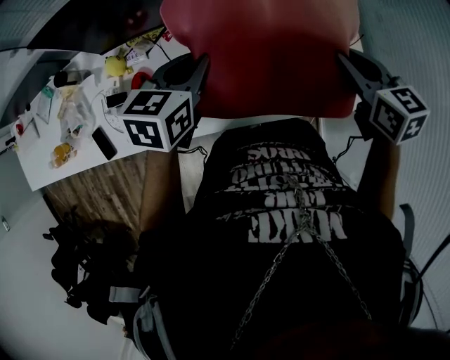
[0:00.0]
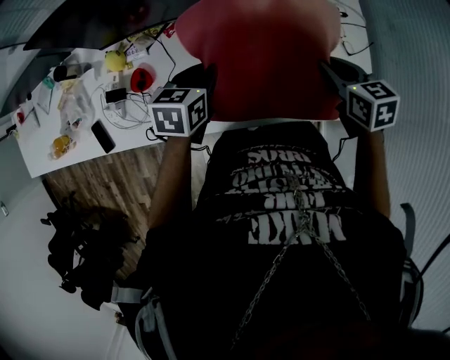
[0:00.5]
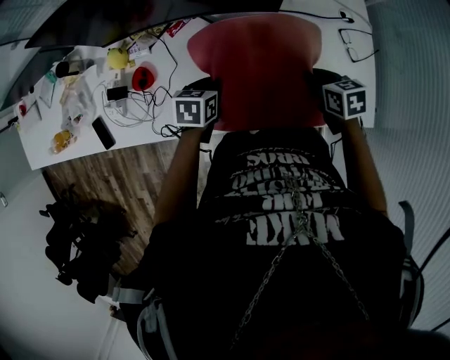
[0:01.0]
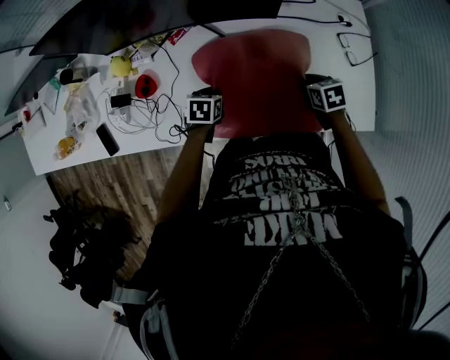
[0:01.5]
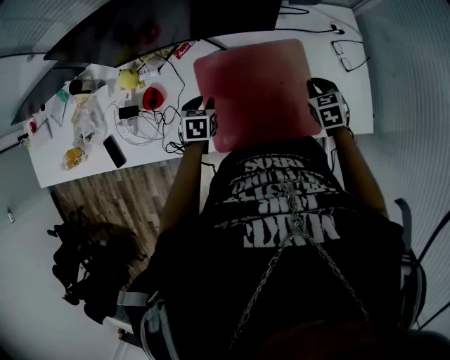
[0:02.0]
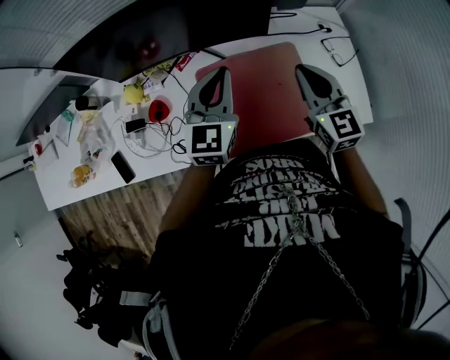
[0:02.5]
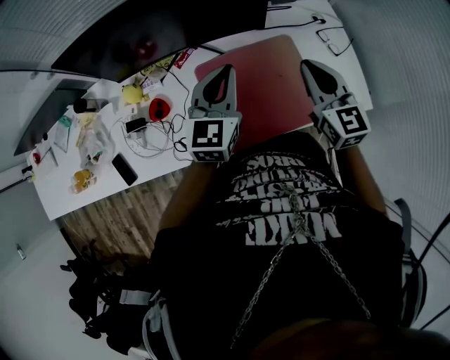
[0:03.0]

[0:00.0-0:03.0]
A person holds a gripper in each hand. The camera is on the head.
0.0 to 1.5 s: The grippers both shift downward by approximately 30 cm. The left gripper swivels some 30 degrees; the right gripper turns by roughly 30 degrees.
1.5 to 3.0 s: Both grippers move upward, roughly 30 cm. The right gripper tilts its fingers roughly 50 degrees upward; the left gripper angles its fingers upward, by some 50 degrees.

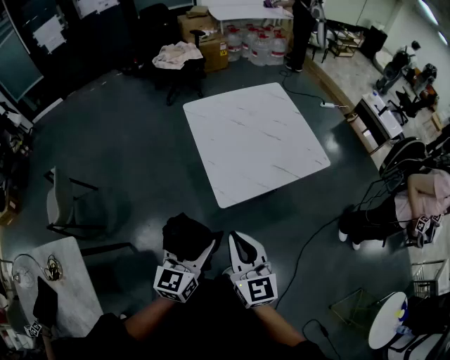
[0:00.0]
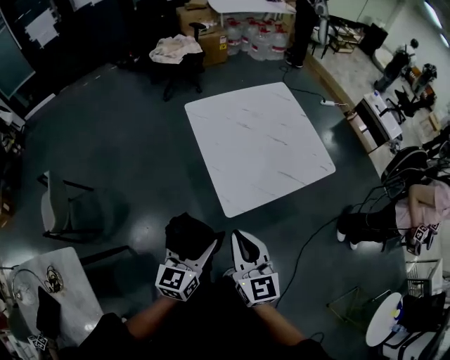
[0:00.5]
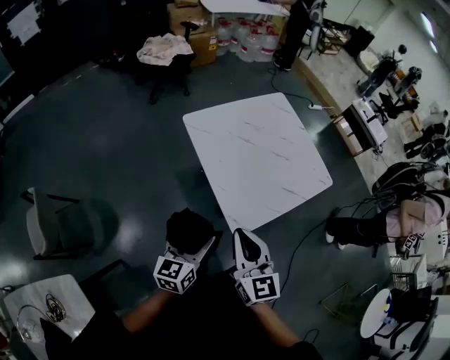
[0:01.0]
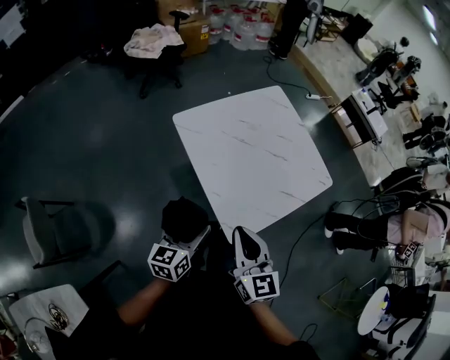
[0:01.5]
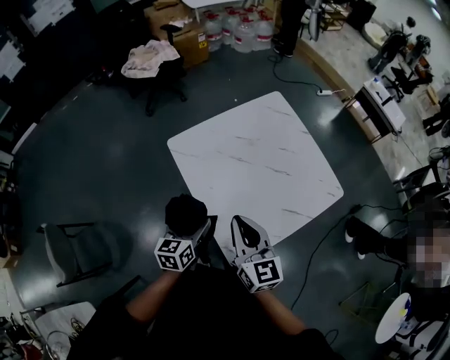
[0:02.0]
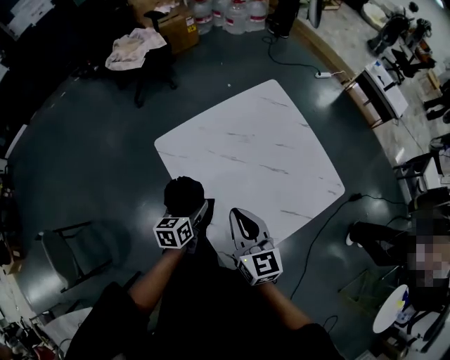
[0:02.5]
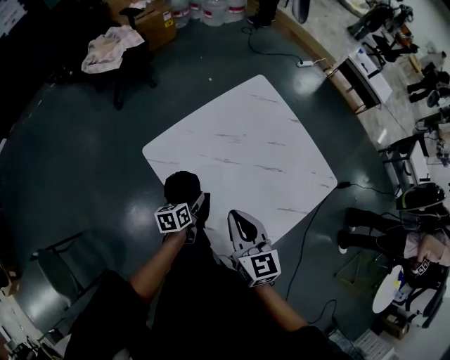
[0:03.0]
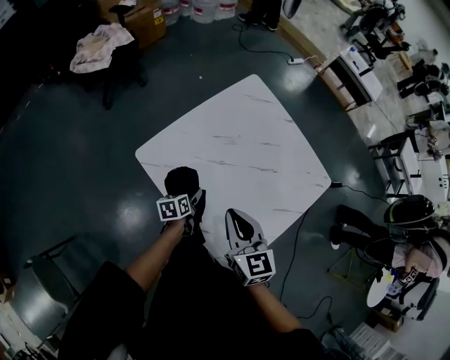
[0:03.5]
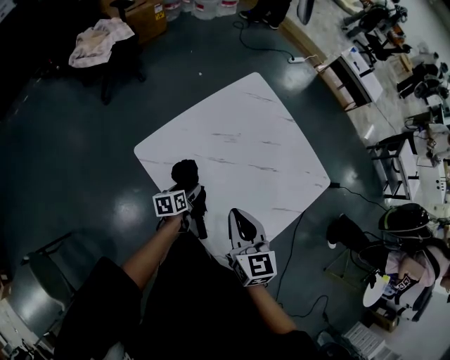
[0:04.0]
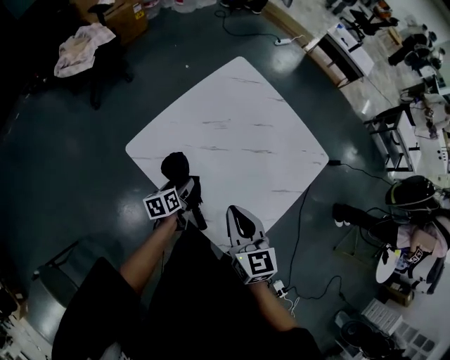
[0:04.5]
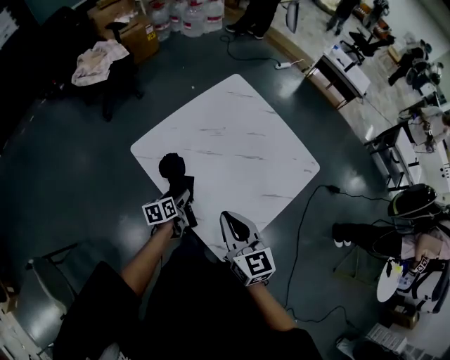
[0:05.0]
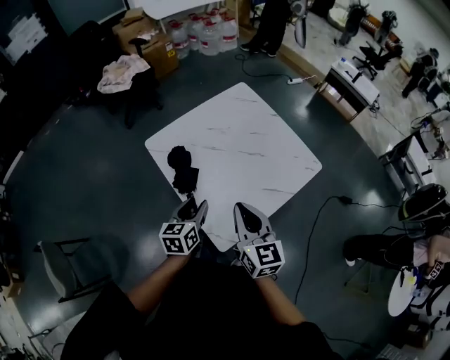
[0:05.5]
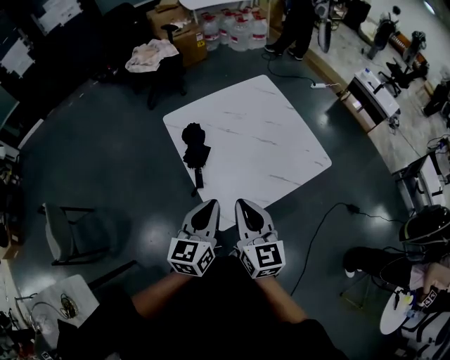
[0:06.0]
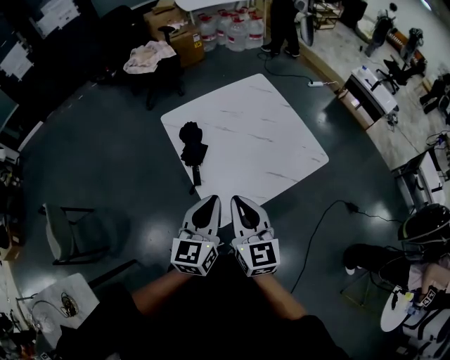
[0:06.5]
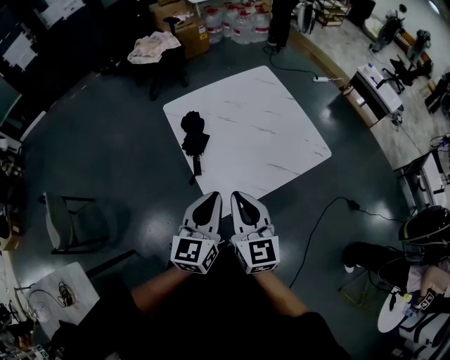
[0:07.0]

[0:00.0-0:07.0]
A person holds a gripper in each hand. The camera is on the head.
0.0 to 2.0 s: The two grippers go some 40 cm forward. The left gripper turns by roughly 20 degrees.
2.0 to 3.5 s: The left gripper shifts roughly 30 cm downward and forward, and changes its angle by about 30 degrees. Meanwhile the right gripper travels forward and downward by roughly 15 cm.
3.5 to 5.0 s: The left gripper shifts about 5 cm backward; the right gripper goes about 10 cm backward and to the right.
5.0 to 7.0 s: The right gripper is displaced backward and to the right by roughly 20 cm; the left gripper shifts roughly 40 cm upward, backward and to the right, tilts its fingers approximately 40 degrees upward, and closes up.

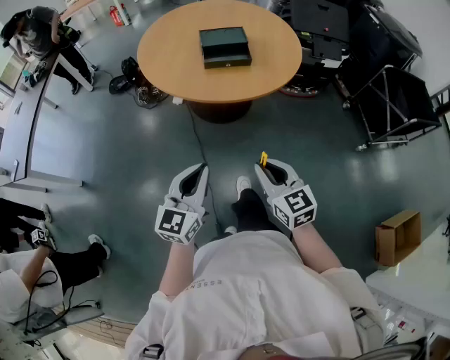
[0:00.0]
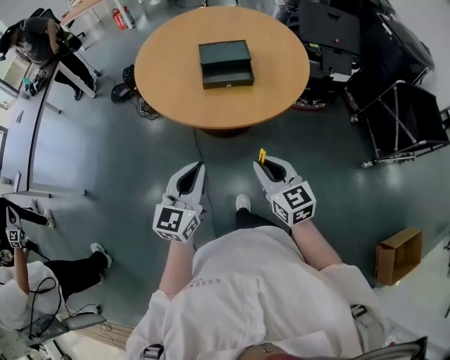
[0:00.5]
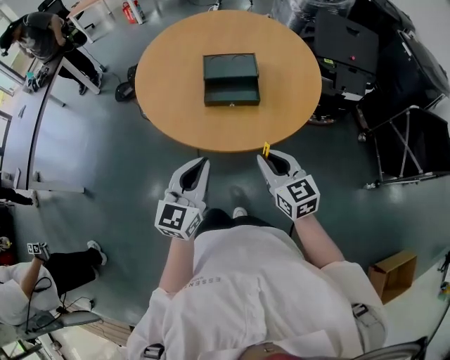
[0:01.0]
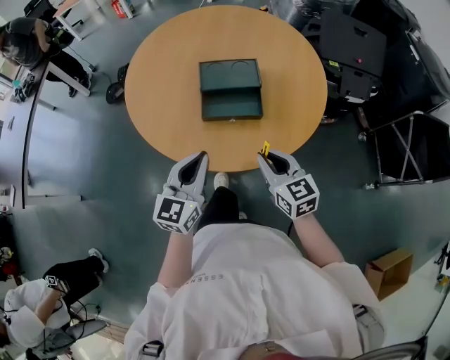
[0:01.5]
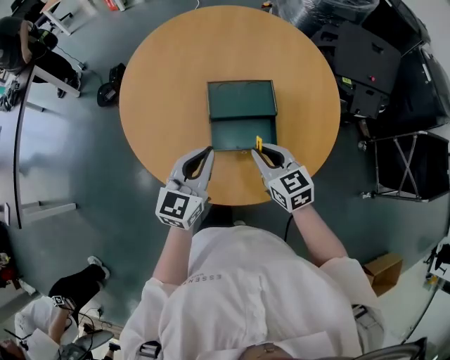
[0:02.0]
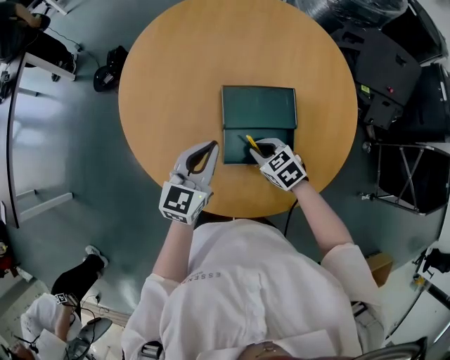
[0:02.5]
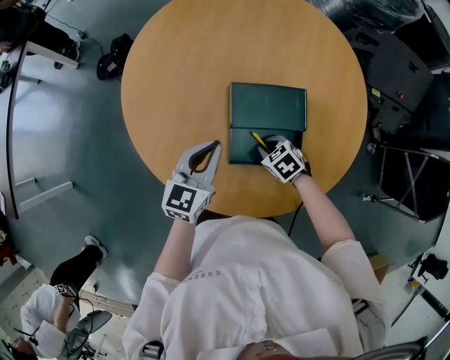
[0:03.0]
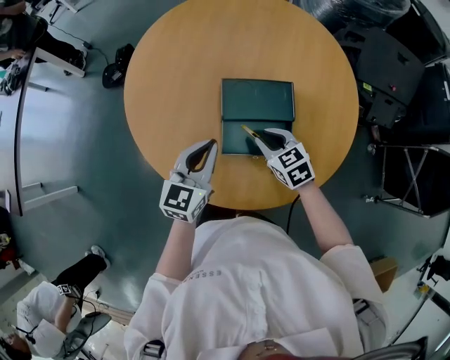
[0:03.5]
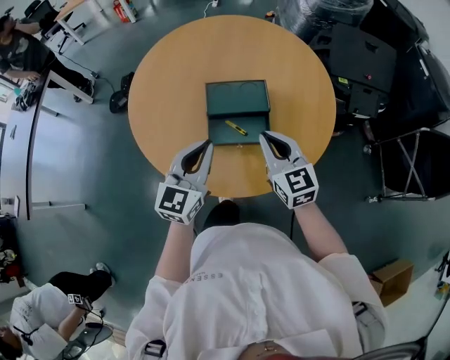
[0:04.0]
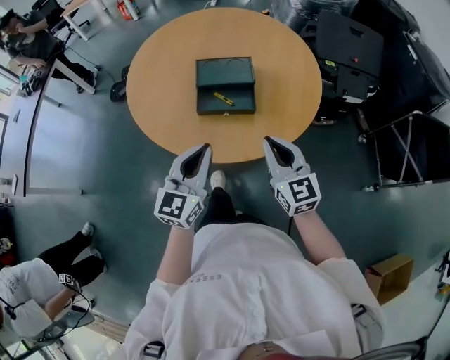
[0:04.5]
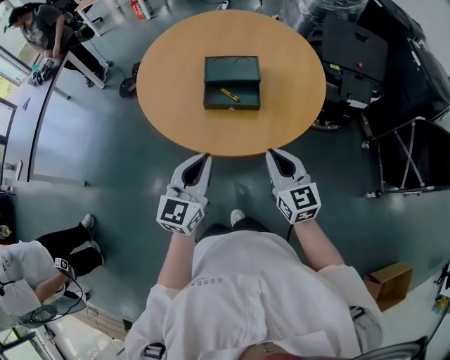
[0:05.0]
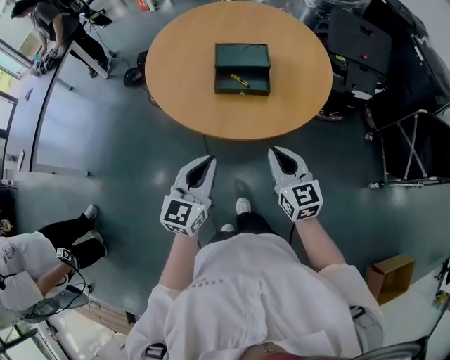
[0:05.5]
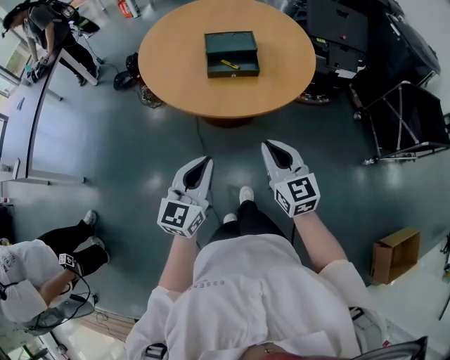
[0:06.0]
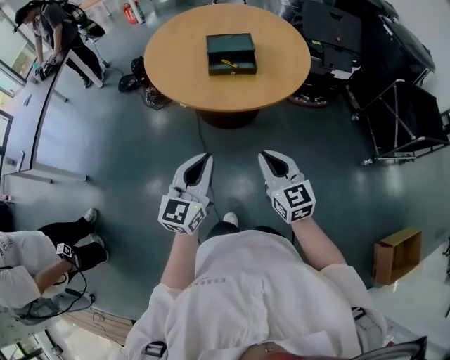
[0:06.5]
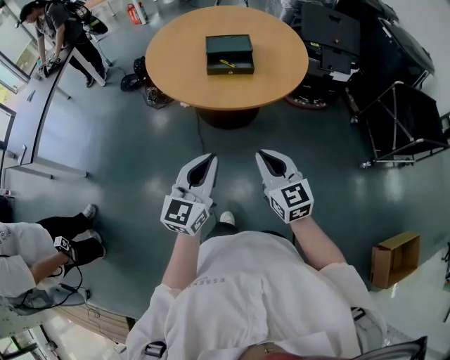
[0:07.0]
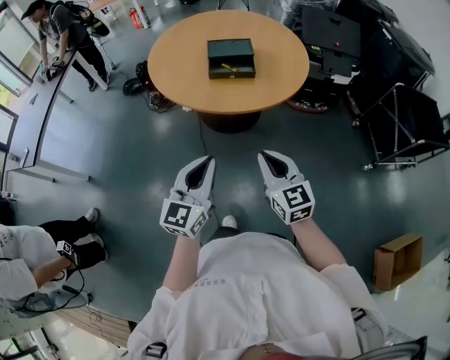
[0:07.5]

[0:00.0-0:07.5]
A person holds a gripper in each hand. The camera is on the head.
0.0 to 2.0 s: Both grippers are carried forward, roughly 50 cm.
2.0 to 4.0 s: The right gripper moves roughly 20 cm downward and comes back.
4.0 to 5.5 s: The grippers both shift backward by about 25 cm.
5.5 to 7.5 s: The two grippers go roughly 20 cm backward.

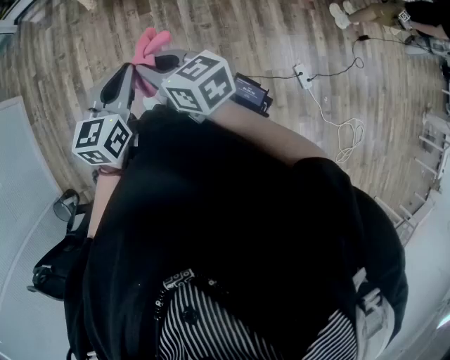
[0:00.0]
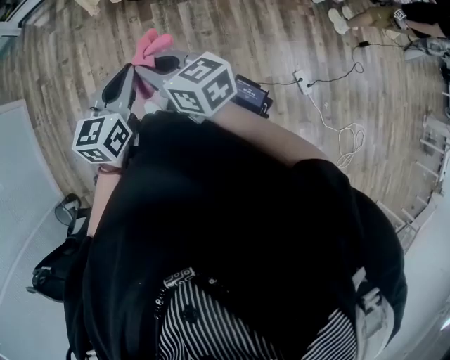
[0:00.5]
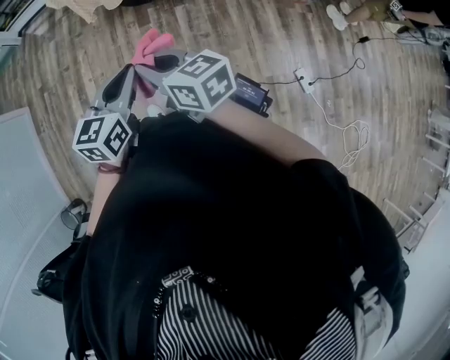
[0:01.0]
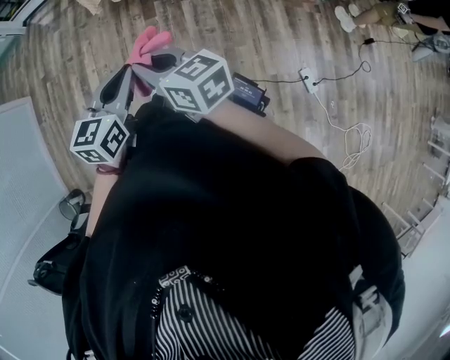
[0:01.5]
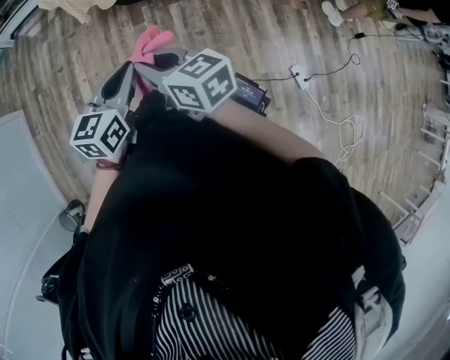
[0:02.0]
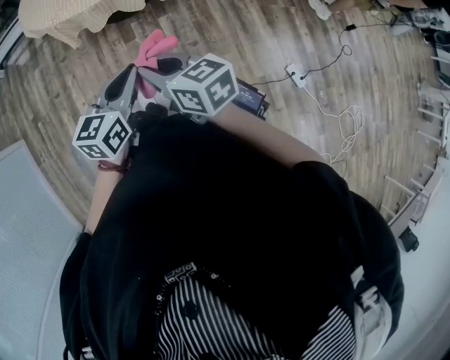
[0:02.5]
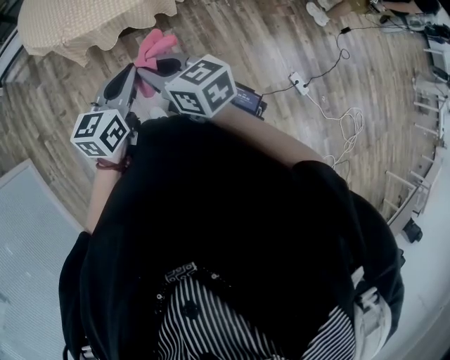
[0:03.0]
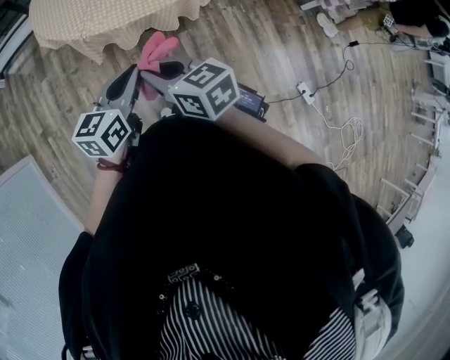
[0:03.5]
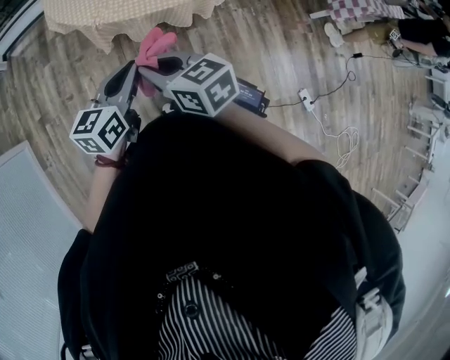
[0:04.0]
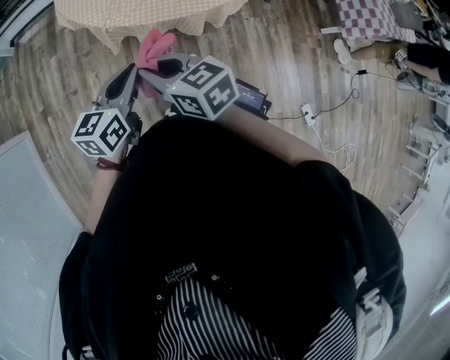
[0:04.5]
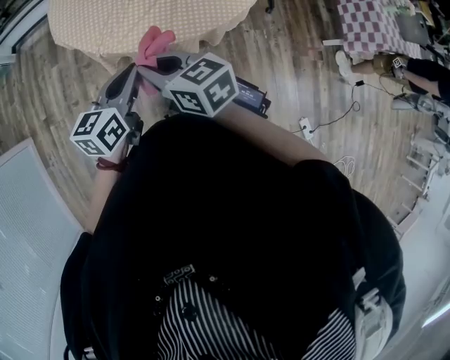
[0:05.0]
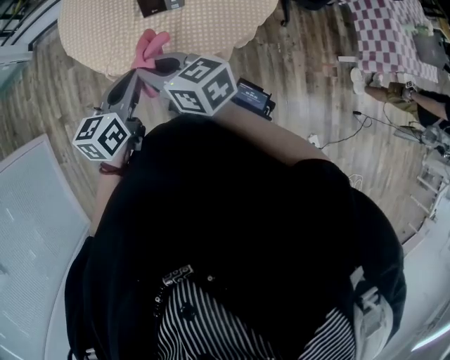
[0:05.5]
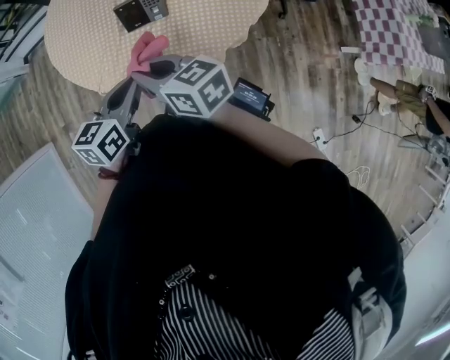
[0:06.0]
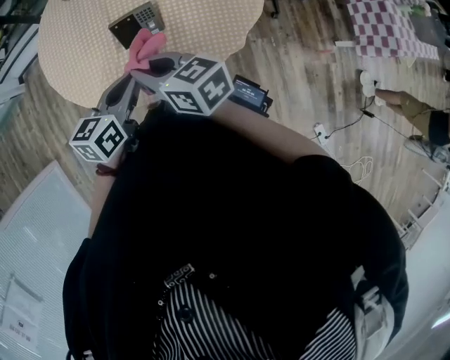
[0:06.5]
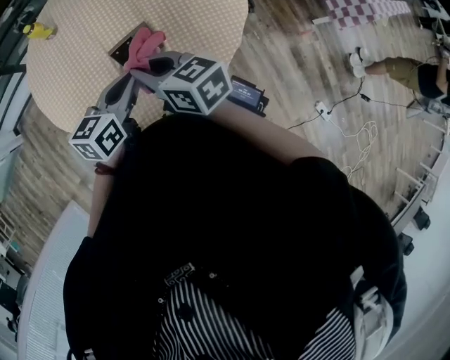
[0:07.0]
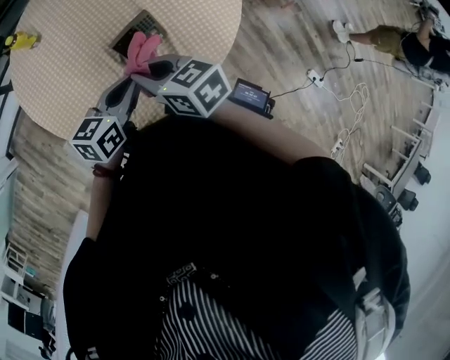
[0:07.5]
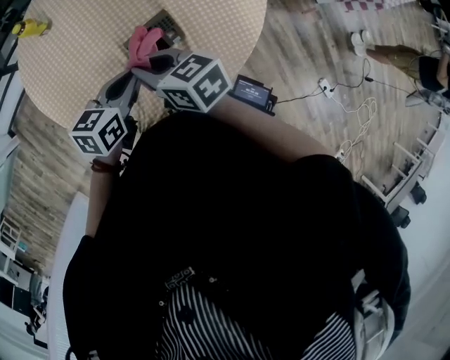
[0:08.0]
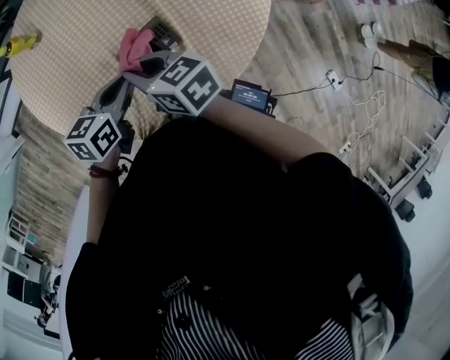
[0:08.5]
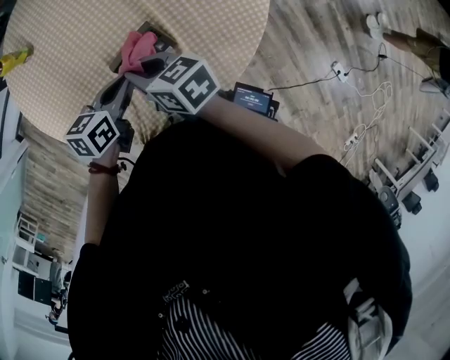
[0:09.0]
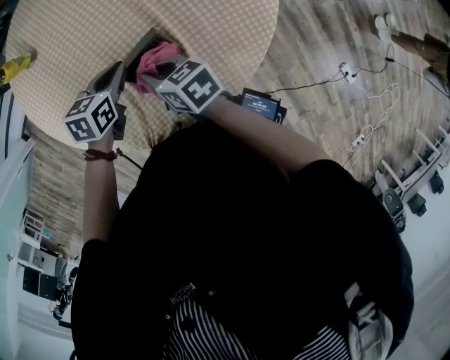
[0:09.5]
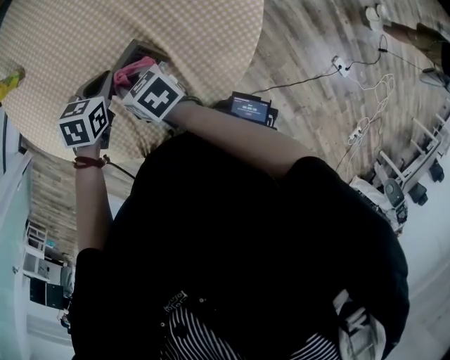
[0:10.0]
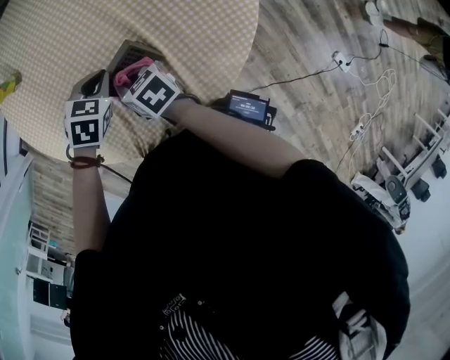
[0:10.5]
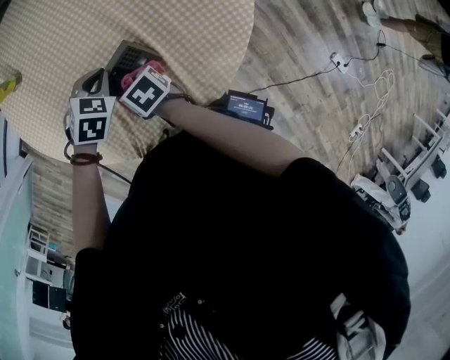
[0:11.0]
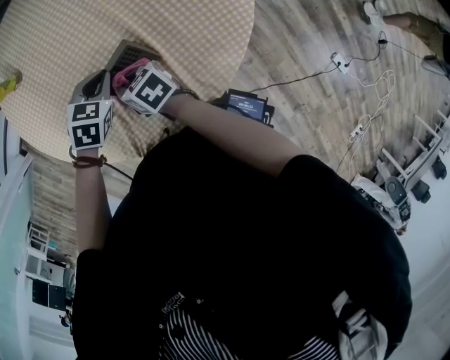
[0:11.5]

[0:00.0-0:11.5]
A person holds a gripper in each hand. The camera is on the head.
0.0 to 2.0 s: The grippers move only a little.
2.0 to 4.0 s: The grippers both shift upward by roughly 20 cm.
4.0 to 6.0 s: The two grippers go about 10 cm backward.
6.0 to 7.5 s: The left gripper shifts by some 10 cm, and rotates some 30 degrees. Meanwhile the right gripper moves approximately 10 cm, and turns by roughly 30 degrees.
7.5 to 9.5 s: The right gripper is displaced downward and forward by some 15 cm. The left gripper travels forward and downward by some 20 cm, and turns by approximately 30 degrees.
9.5 to 11.5 s: The right gripper goes approximately 5 cm downward, while the left gripper turns by about 30 degrees.
